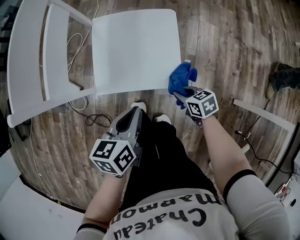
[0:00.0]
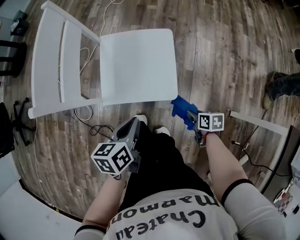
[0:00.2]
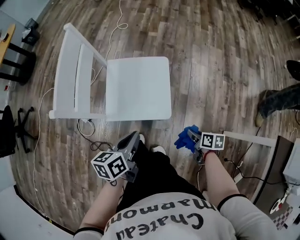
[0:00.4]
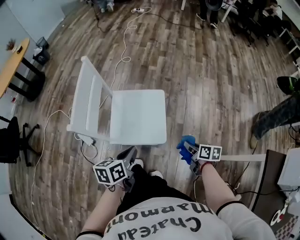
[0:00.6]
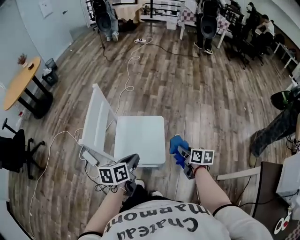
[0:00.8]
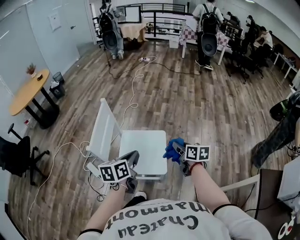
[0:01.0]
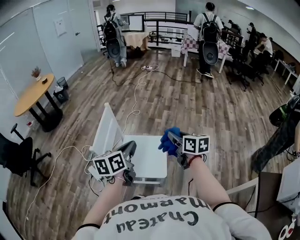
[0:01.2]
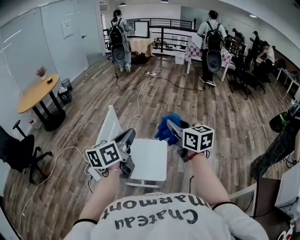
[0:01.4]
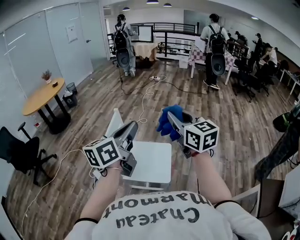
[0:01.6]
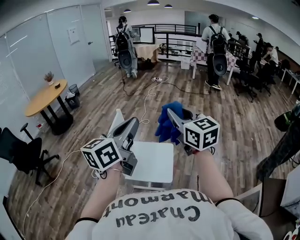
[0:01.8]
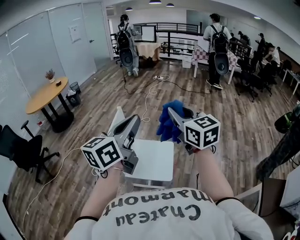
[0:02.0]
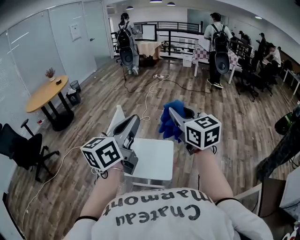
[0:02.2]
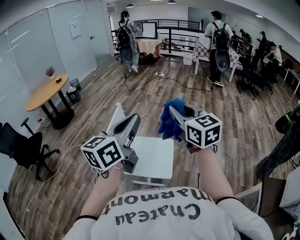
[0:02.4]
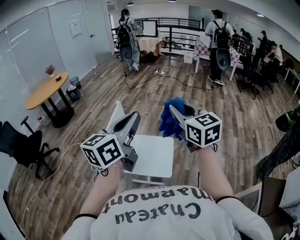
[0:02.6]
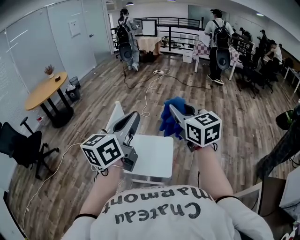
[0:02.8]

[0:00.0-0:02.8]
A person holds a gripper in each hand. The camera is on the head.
0:00.0 to 0:01.4: Both grippers move upward, about 50 cm. The left gripper tips its fingers upward by roughly 30 degrees; the right gripper tips its fingers upward by roughly 40 degrees.
0:01.4 to 0:02.8: The grippers both shift upward by about 10 cm.

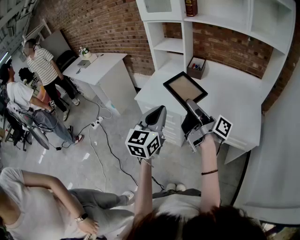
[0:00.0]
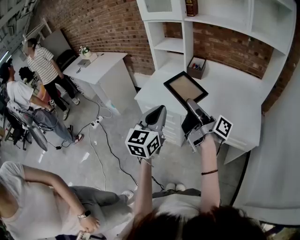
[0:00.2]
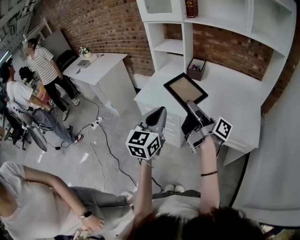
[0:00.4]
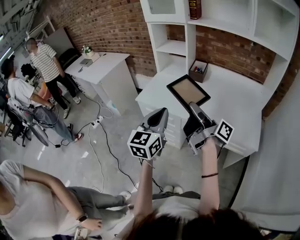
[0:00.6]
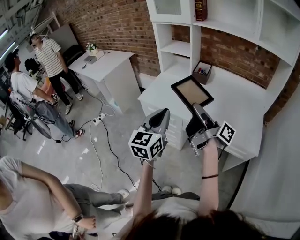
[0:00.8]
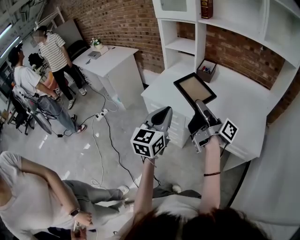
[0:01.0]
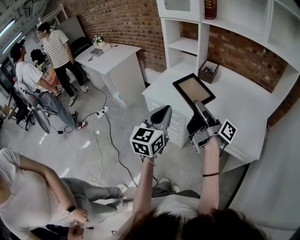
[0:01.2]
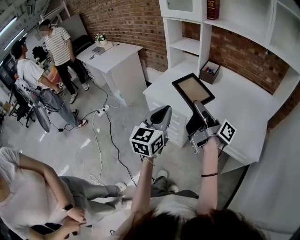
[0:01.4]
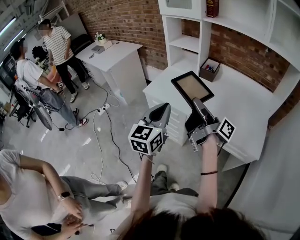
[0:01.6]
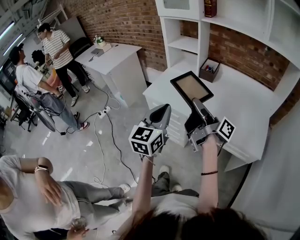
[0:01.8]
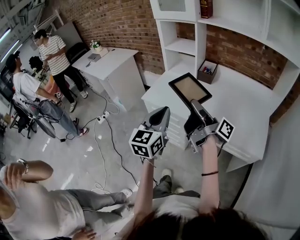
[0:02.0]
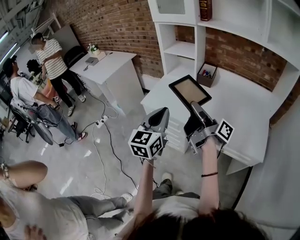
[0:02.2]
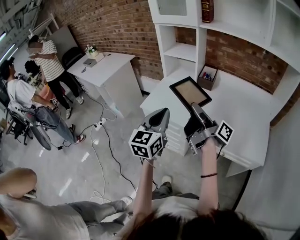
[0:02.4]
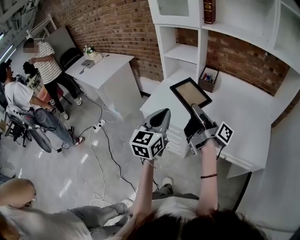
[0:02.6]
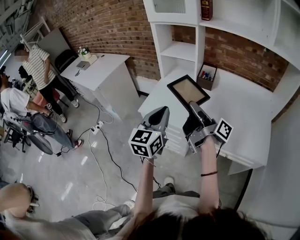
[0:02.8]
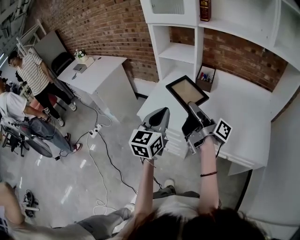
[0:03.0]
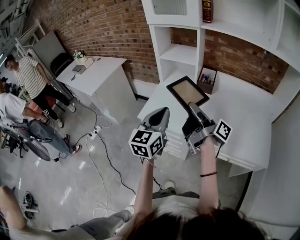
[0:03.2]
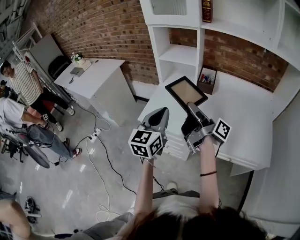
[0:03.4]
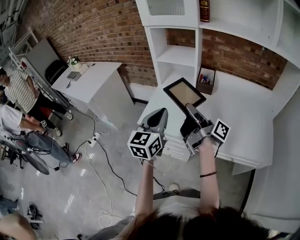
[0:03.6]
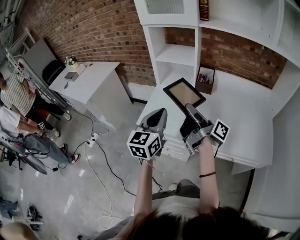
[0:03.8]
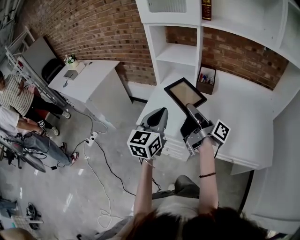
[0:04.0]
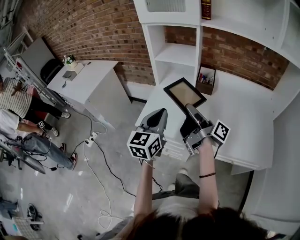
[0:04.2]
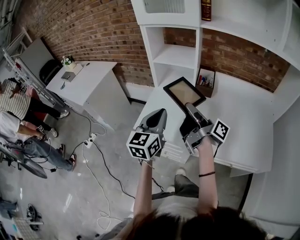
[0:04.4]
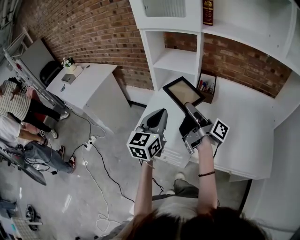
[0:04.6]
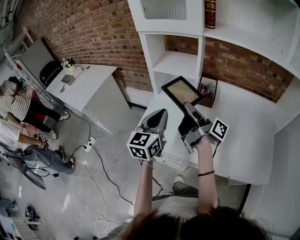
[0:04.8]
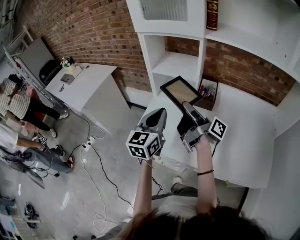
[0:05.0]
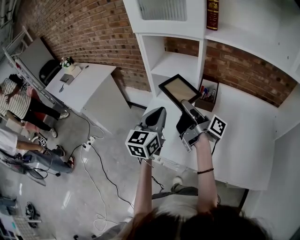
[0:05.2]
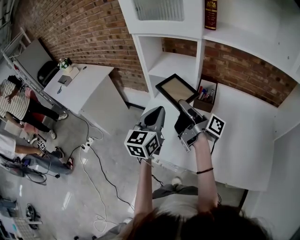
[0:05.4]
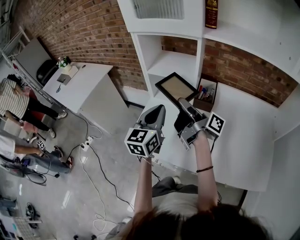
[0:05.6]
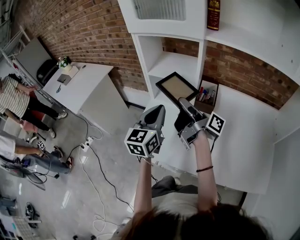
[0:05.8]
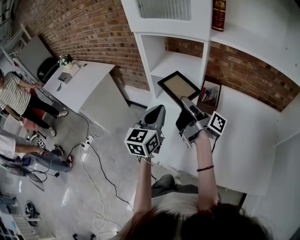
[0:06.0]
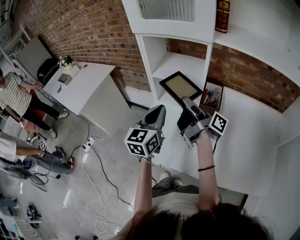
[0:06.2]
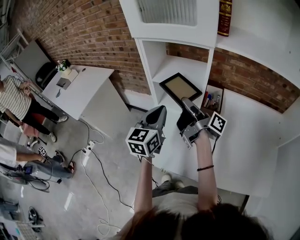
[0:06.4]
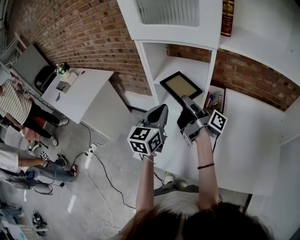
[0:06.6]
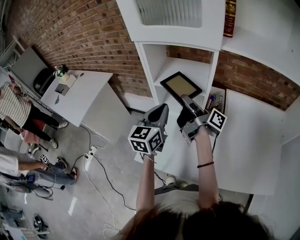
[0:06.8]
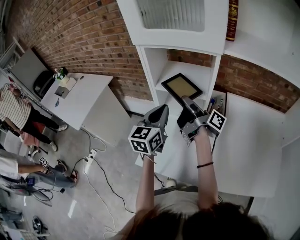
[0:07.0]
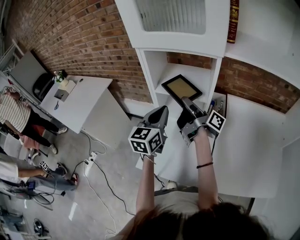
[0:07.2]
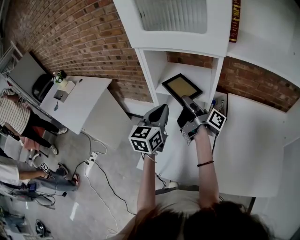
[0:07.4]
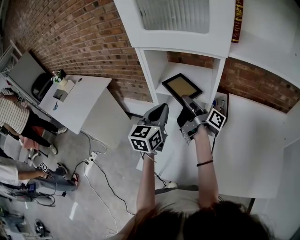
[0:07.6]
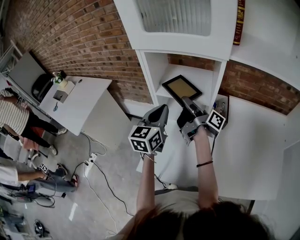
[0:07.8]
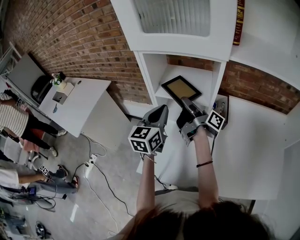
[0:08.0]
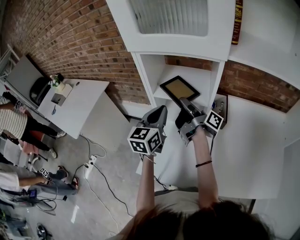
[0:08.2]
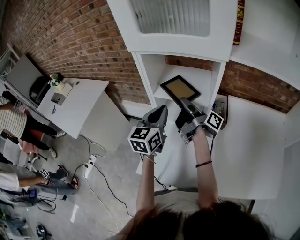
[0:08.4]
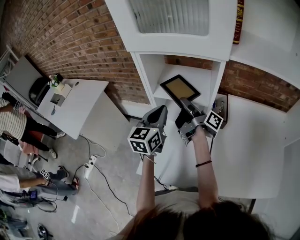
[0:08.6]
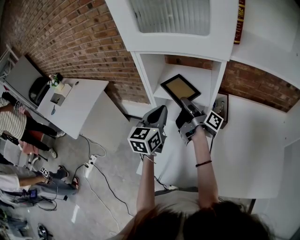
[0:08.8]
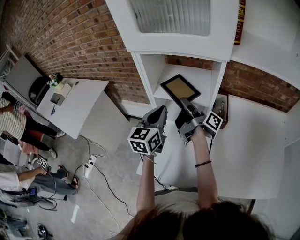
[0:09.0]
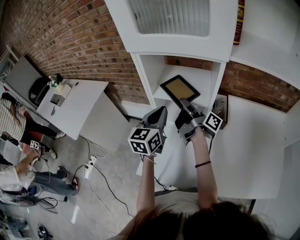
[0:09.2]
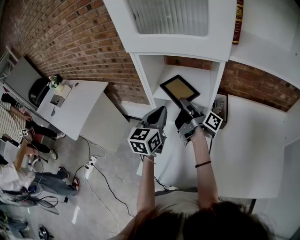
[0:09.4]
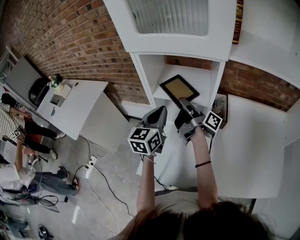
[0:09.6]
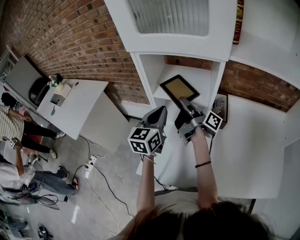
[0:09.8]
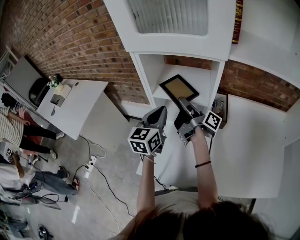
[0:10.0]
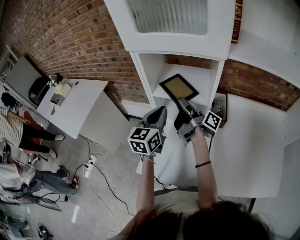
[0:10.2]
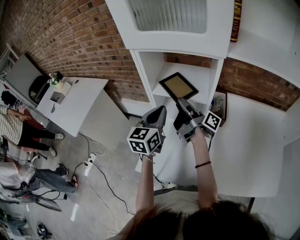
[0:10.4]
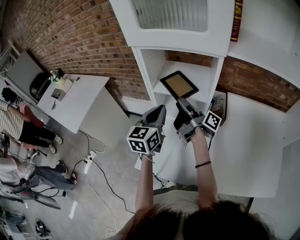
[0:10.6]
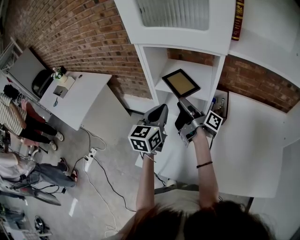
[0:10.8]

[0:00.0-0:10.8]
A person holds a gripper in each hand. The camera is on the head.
0:01.6 to 0:03.0: The left gripper shifts by about 15 cm.
0:03.0 to 0:04.6: The left gripper moves approximately 15 cm.
0:04.6 to 0:06.2: The left gripper changes place by about 15 cm.
0:06.2 to 0:07.8: The left gripper changes place by roughly 10 cm.

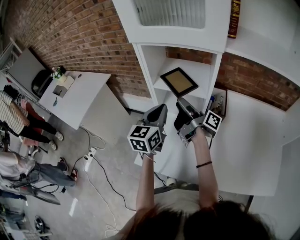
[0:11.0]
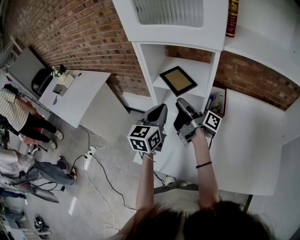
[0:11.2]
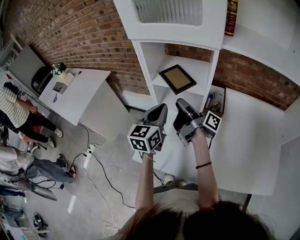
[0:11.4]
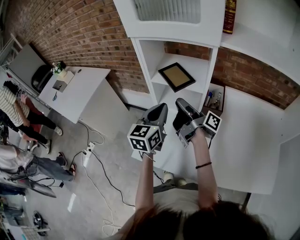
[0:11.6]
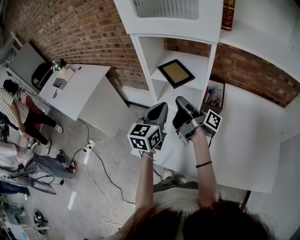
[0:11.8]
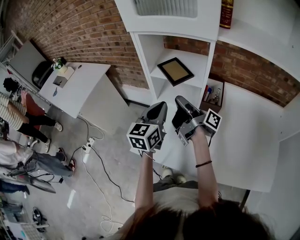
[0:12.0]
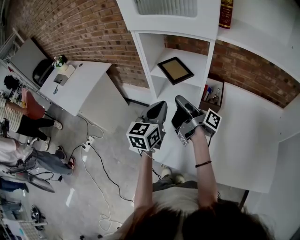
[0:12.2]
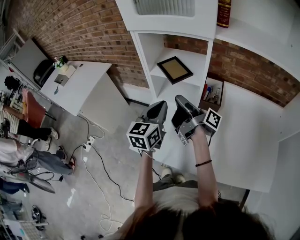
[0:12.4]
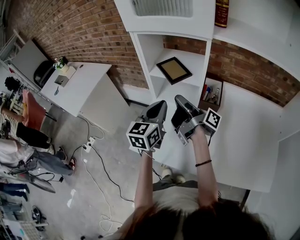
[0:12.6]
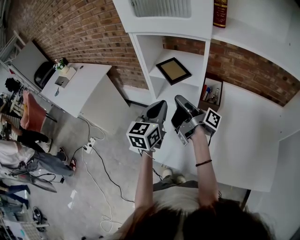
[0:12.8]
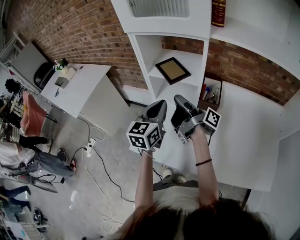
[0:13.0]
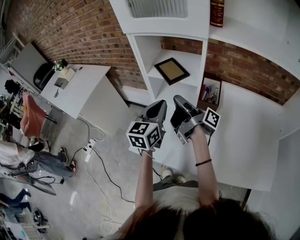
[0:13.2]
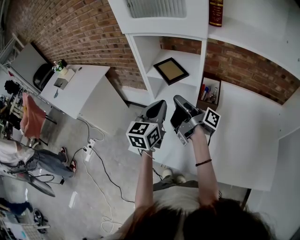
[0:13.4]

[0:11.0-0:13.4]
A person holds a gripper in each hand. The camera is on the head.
0:11.0 to 0:12.2: The left gripper changes place by some 5 cm.

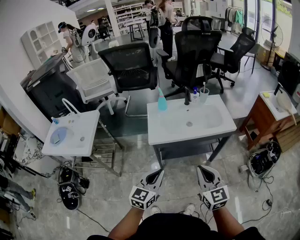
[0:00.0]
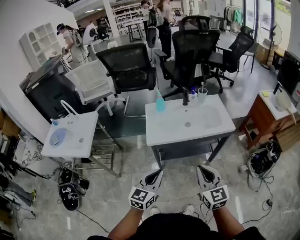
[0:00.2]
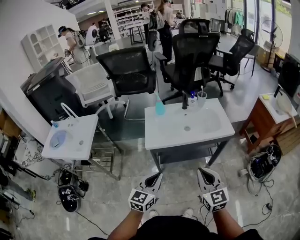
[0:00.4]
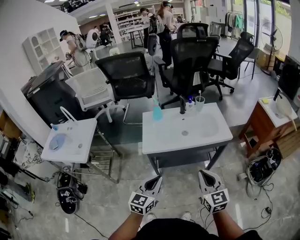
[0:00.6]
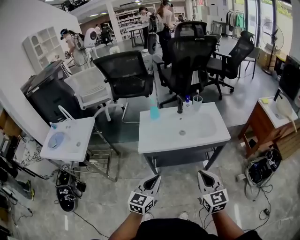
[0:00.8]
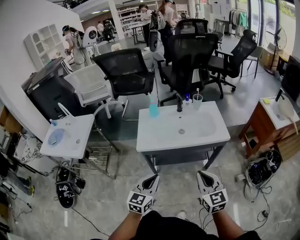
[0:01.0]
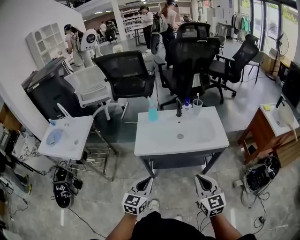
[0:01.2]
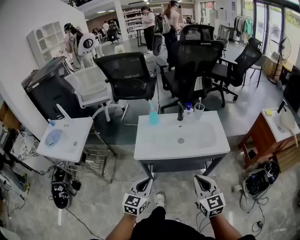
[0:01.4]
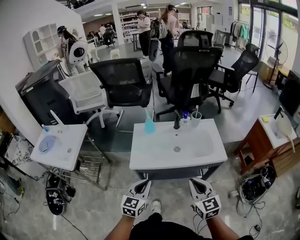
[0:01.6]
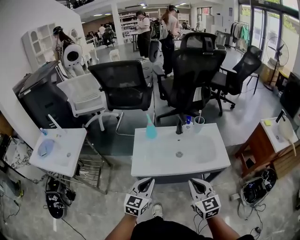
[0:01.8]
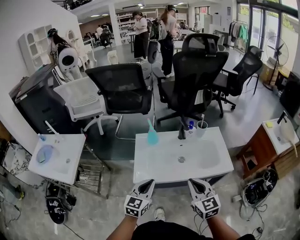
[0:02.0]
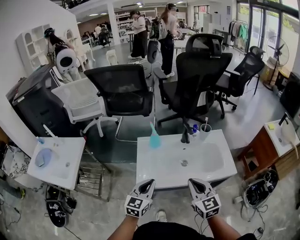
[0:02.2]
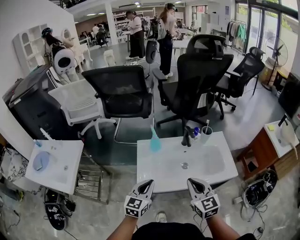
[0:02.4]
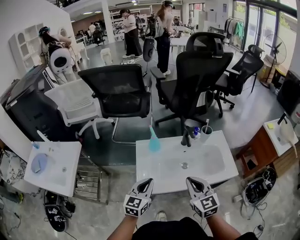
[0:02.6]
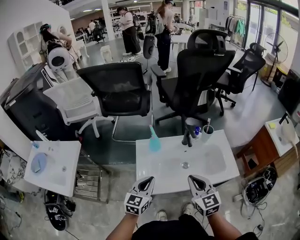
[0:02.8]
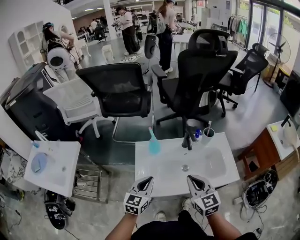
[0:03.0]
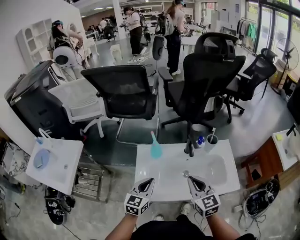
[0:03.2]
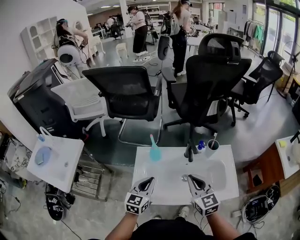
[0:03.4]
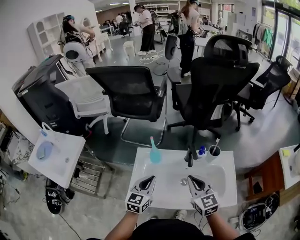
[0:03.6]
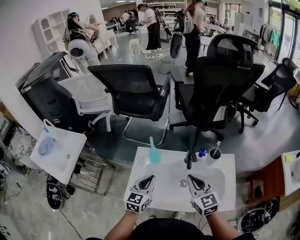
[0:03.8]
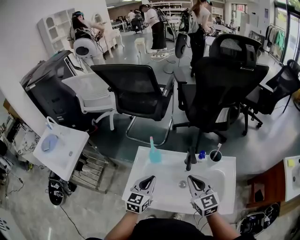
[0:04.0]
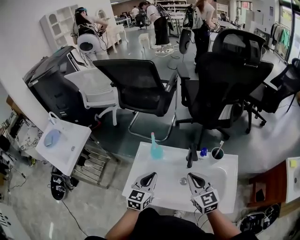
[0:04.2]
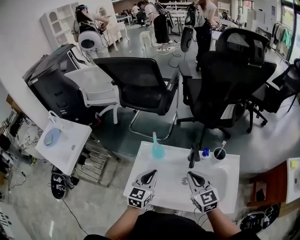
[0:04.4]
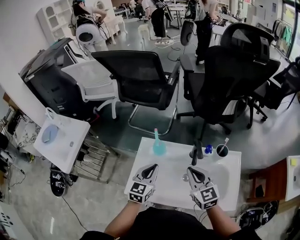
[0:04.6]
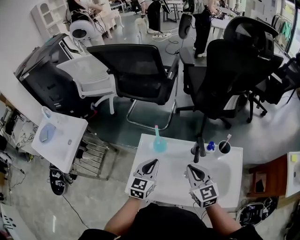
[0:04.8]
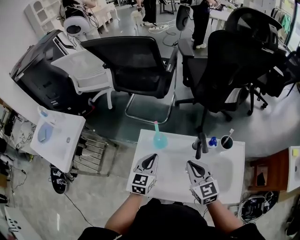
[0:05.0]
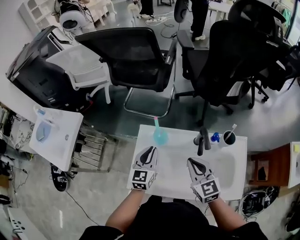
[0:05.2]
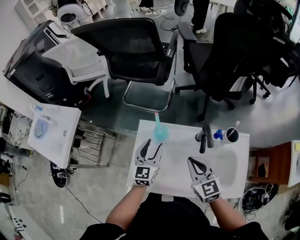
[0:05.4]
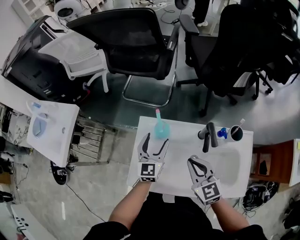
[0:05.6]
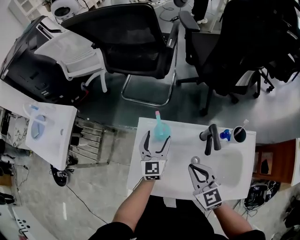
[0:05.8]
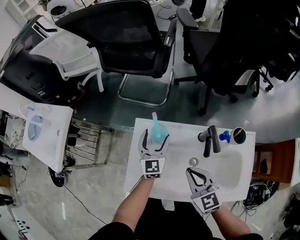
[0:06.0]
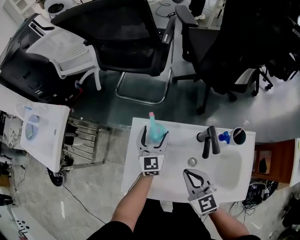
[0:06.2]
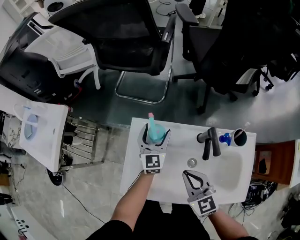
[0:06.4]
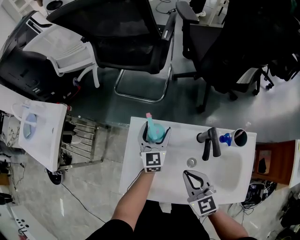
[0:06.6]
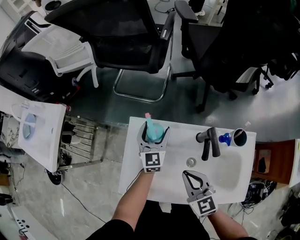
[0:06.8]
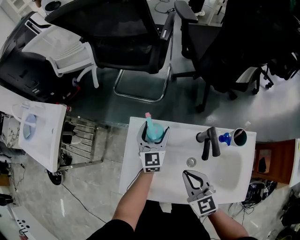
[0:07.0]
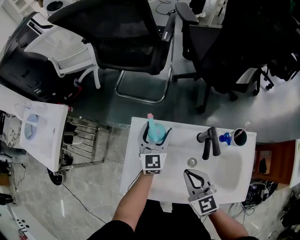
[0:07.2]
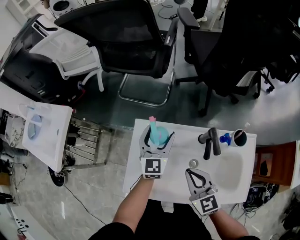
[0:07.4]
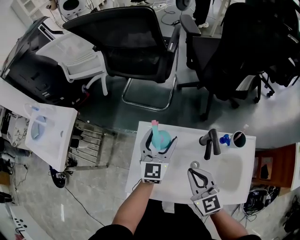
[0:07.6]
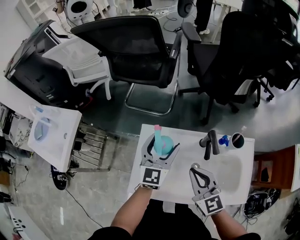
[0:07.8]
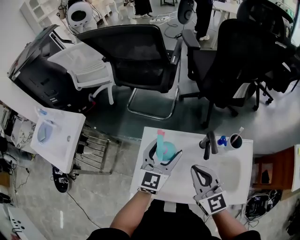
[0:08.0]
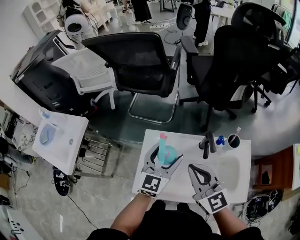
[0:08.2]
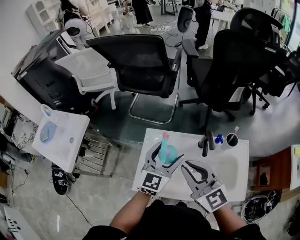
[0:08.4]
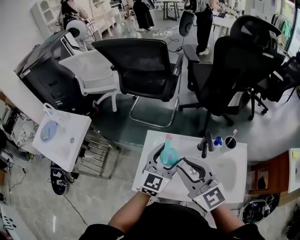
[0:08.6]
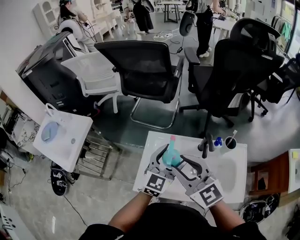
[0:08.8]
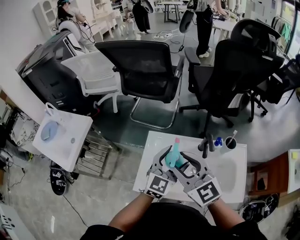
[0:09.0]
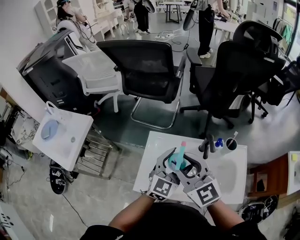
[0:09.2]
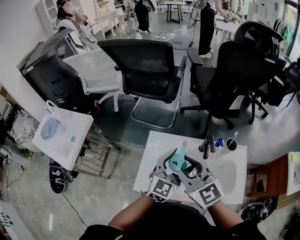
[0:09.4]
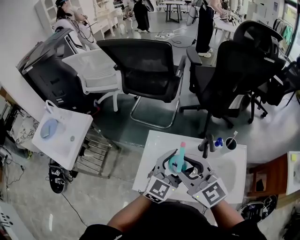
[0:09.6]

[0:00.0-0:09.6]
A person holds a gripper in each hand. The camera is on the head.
0:00.0 to 0:01.6: The right gripper moves forward and to the right, about 15 cm; the left gripper travels forward by about 15 cm.
0:01.6 to 0:03.2: Both grippers travel together forward, some 25 cm.
0:03.2 to 0:04.8: The two grippers go some 10 cm forward.
0:04.8 to 0:06.4: The right gripper travels downward by some 10 cm, while the left gripper shifts roughly 15 cm forward and downward, and opens up.
0:06.4 to 0:08.0: The right gripper travels upward by roughly 10 cm; the left gripper is displaced upward and backward by approximately 20 cm.
0:08.0 to 0:09.6: The right gripper goes some 15 cm upward and to the left, and opens. The left gripper travels backward and upward by approximately 10 cm.
